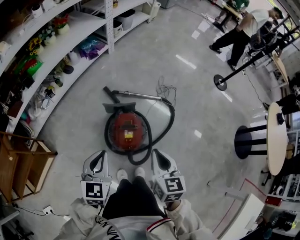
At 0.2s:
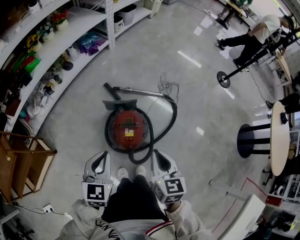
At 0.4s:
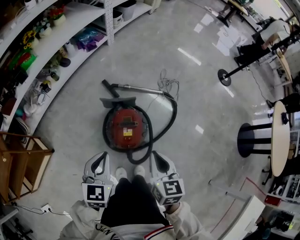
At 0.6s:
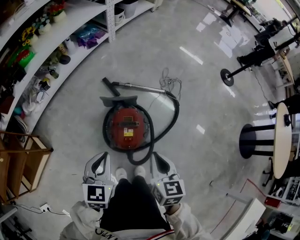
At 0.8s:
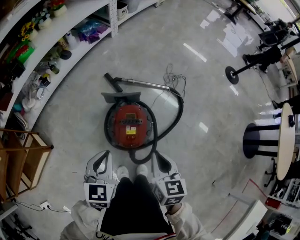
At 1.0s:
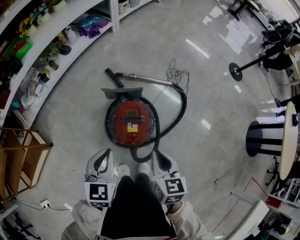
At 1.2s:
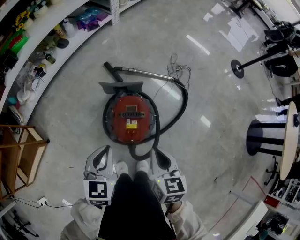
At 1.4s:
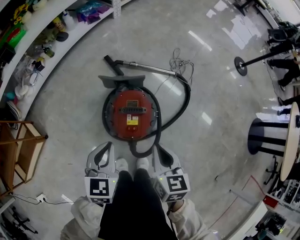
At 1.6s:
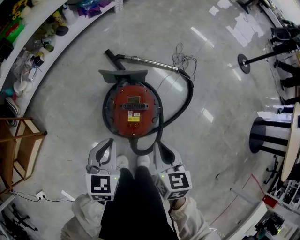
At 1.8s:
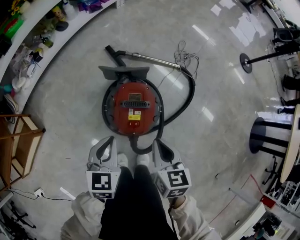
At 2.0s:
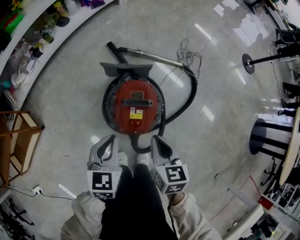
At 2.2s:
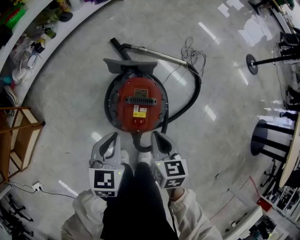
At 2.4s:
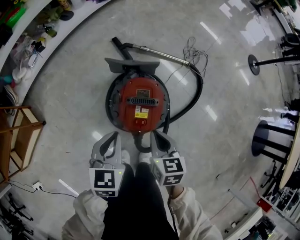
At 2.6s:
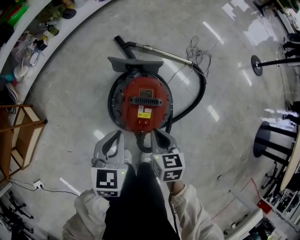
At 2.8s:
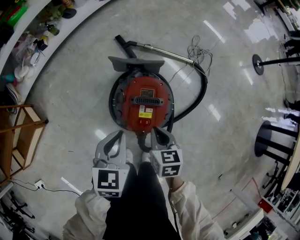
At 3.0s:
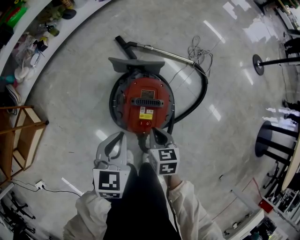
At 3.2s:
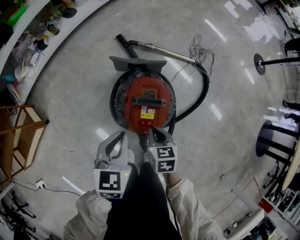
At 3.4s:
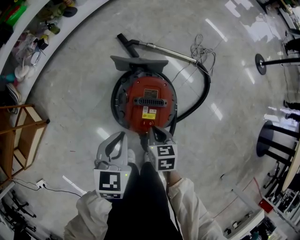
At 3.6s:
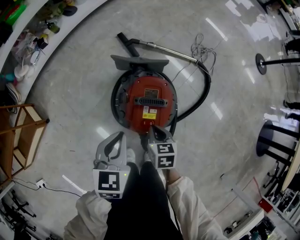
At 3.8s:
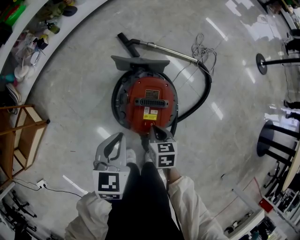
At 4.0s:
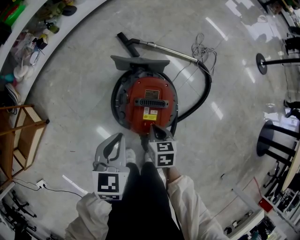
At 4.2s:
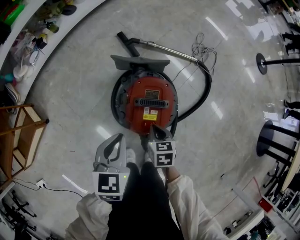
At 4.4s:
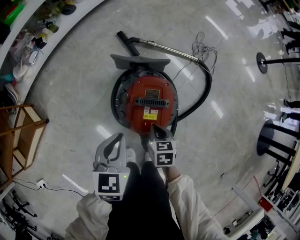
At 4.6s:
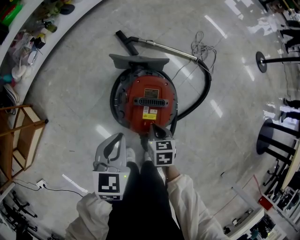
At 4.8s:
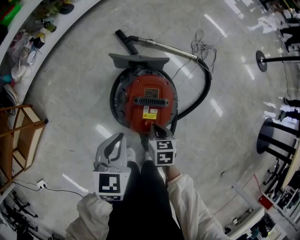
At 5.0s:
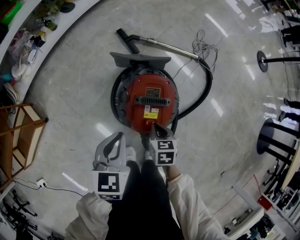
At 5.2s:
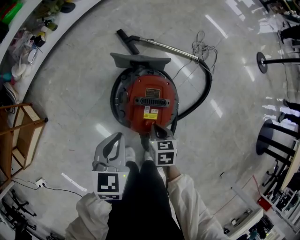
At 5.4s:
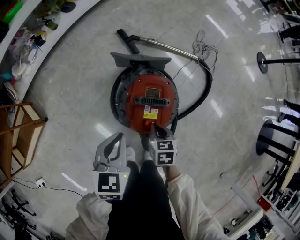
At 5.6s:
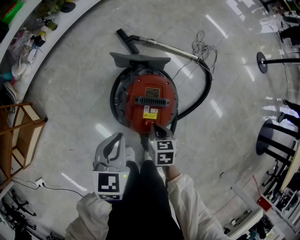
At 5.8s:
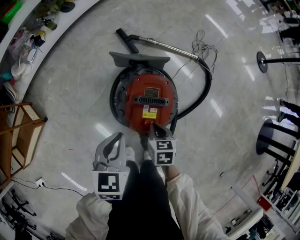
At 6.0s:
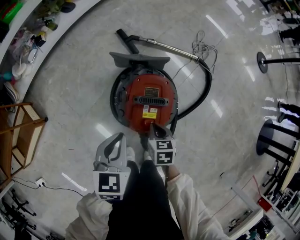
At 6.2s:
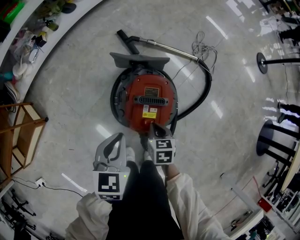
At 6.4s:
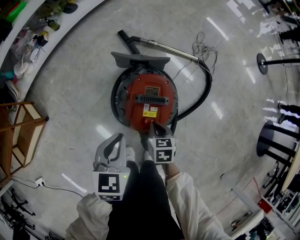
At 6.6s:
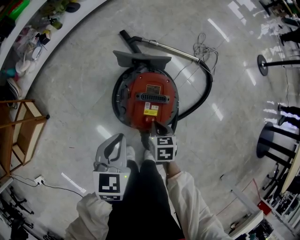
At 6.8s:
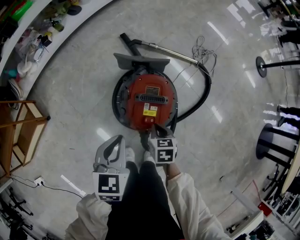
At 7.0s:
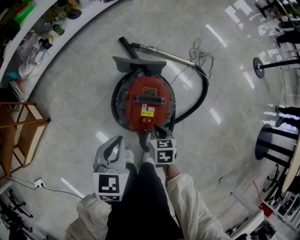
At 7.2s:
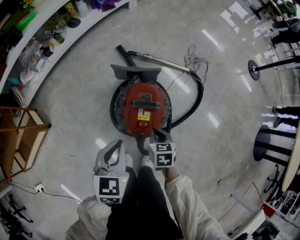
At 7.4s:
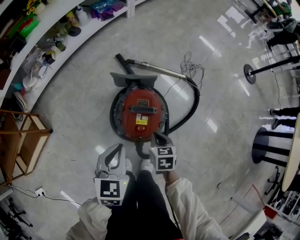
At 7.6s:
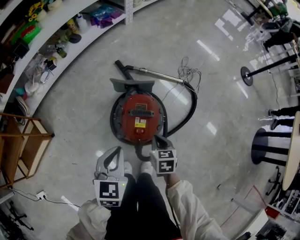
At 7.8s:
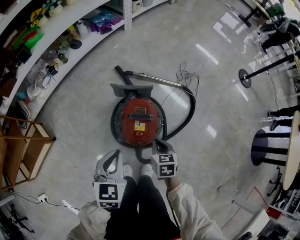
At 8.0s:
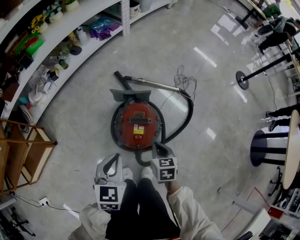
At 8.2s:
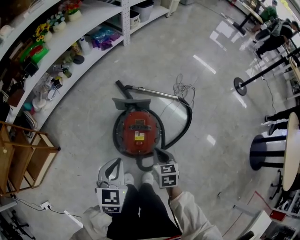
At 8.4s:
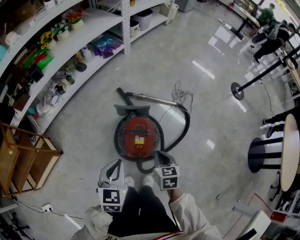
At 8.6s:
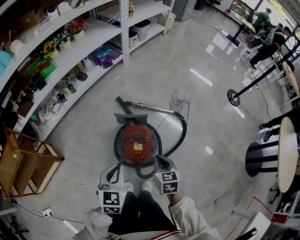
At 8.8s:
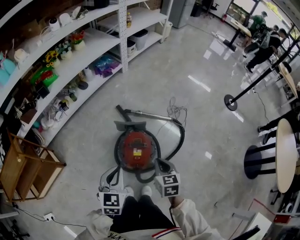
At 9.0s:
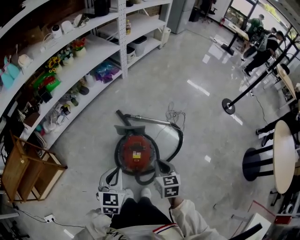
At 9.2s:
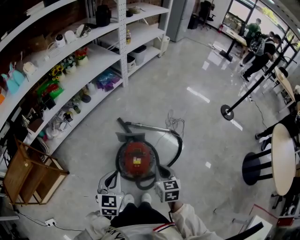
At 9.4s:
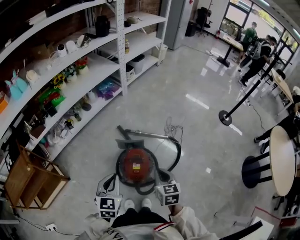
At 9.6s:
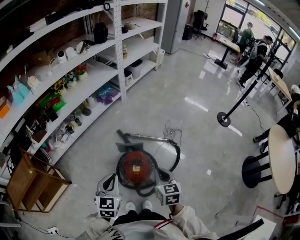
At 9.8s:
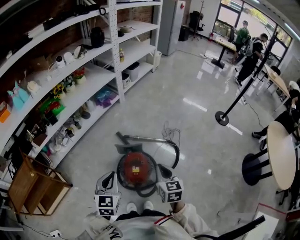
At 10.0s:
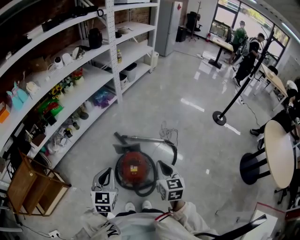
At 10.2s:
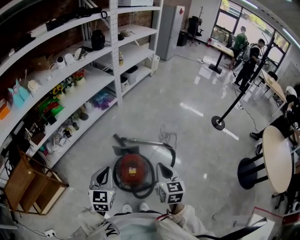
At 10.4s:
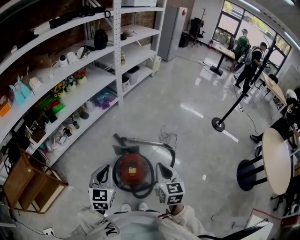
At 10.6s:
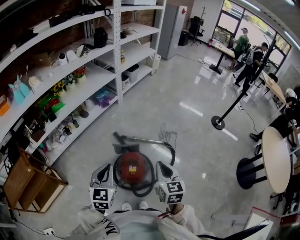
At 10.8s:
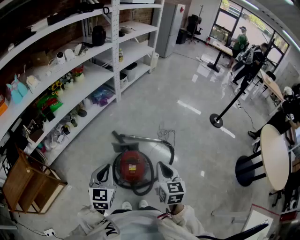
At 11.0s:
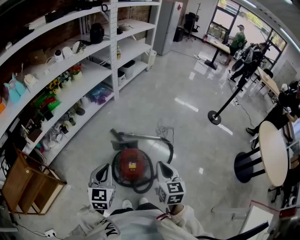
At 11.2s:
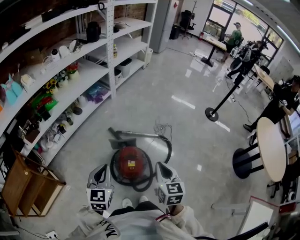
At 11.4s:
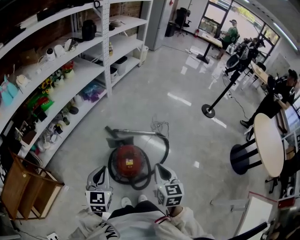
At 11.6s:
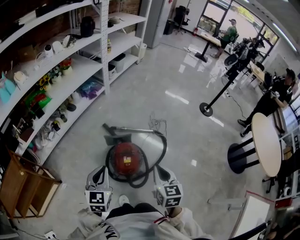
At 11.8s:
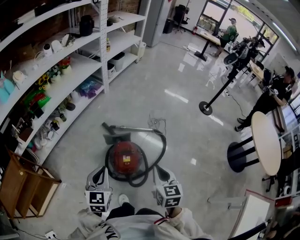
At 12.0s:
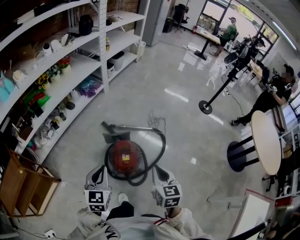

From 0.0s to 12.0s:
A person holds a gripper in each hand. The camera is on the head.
From 0.0s to 1.6s: Both grippers move downward, about 20 cm.
From 1.6s to 3.0s: The right gripper moves downward, roughly 15 cm.
From 3.0s to 4.4s: The right gripper heads downward, covering approximately 5 cm.
From 4.4s to 6.0s: Neither gripper changes place.
From 6.0s to 7.6s: The two grippers go some 10 cm upward.
From 7.6s to 9.0s: The right gripper goes roughly 25 cm upward; the left gripper is displaced upward by approximately 15 cm.
From 9.0s to 10.4s: The left gripper travels upward by roughly 10 cm. Meanwhile the right gripper travels upward by roughly 15 cm.
From 10.4s to 12.0s: The right gripper travels backward by some 10 cm; the left gripper shifts by about 5 cm.

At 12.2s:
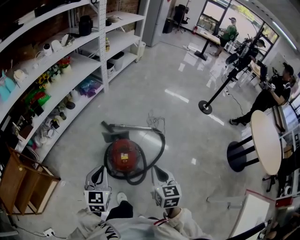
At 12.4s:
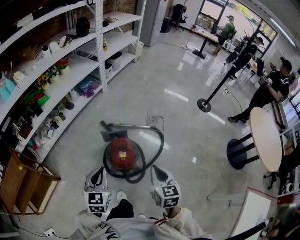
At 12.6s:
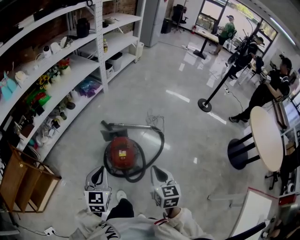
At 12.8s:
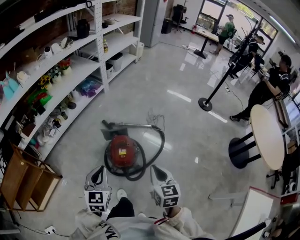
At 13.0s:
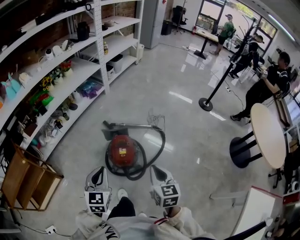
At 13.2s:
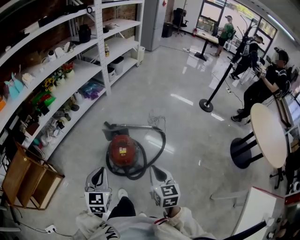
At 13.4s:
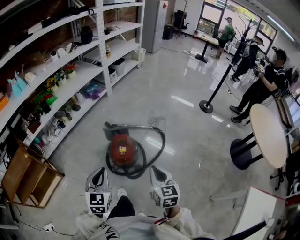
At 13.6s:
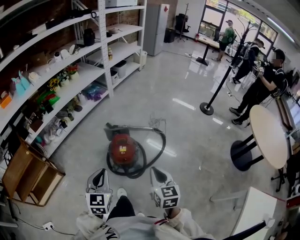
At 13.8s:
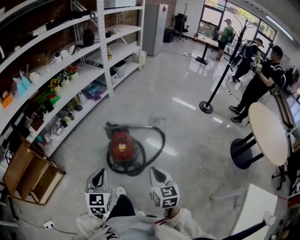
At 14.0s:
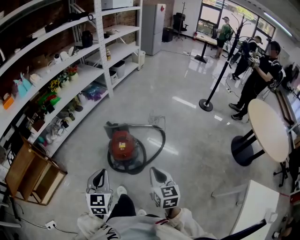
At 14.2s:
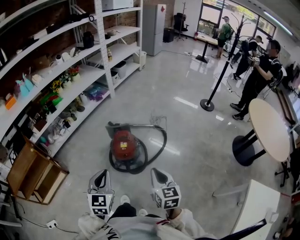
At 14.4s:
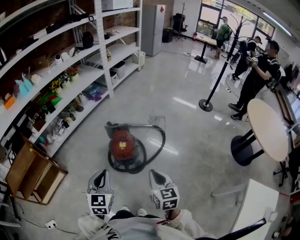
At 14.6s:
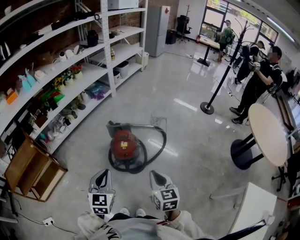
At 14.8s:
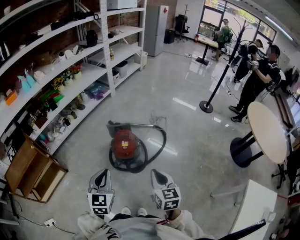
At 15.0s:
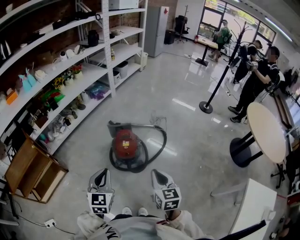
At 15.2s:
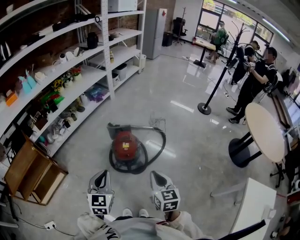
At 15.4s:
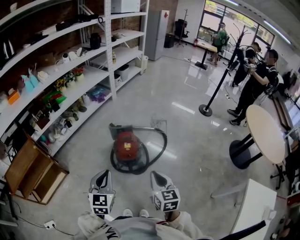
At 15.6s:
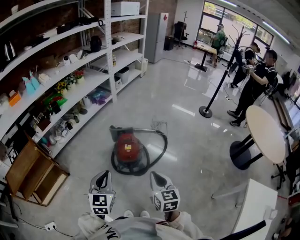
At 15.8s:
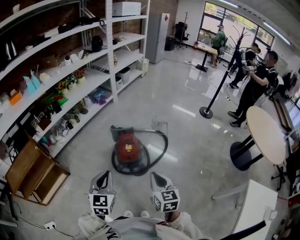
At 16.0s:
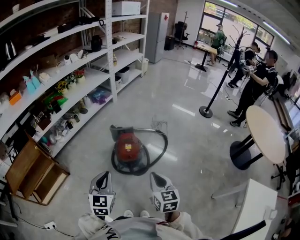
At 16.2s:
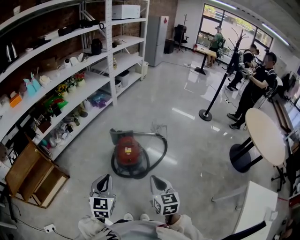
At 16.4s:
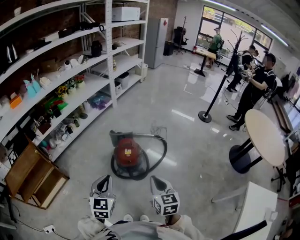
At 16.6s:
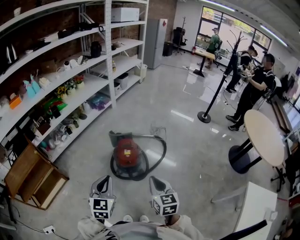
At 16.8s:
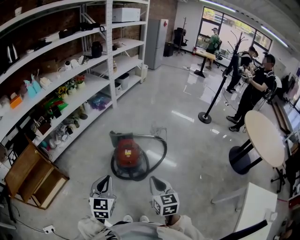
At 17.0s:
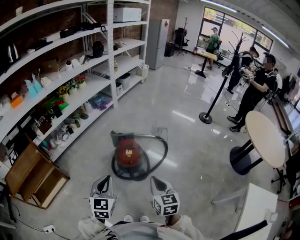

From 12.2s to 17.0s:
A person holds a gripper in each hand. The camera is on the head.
From 12.2s to 13.8s: The grippers both shift backward by some 15 cm.
From 13.8s to 15.4s: The left gripper ends up roughly 5 cm from where it was. Meanwhile the right gripper travels backward by about 5 cm.
From 15.4s to 17.0s: The two grippers keep their place.

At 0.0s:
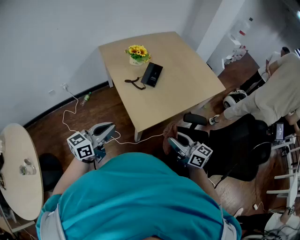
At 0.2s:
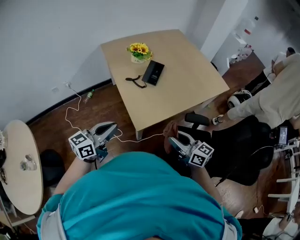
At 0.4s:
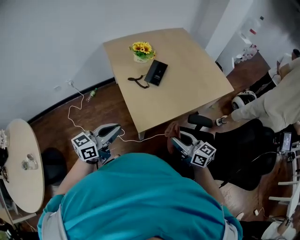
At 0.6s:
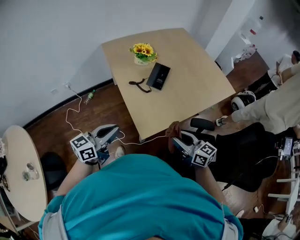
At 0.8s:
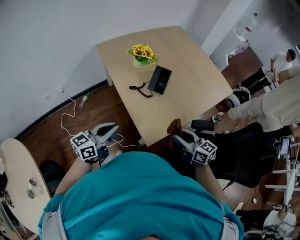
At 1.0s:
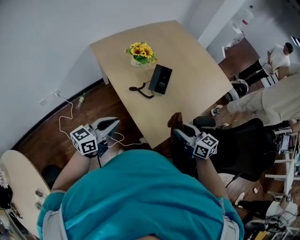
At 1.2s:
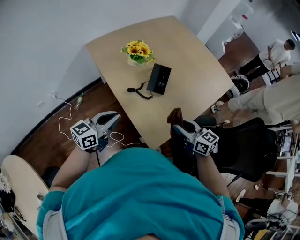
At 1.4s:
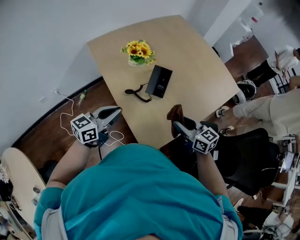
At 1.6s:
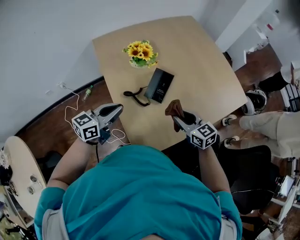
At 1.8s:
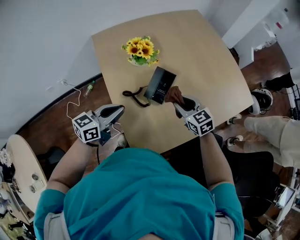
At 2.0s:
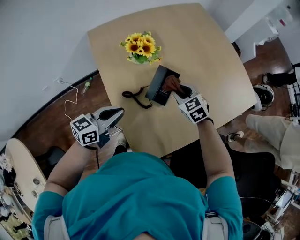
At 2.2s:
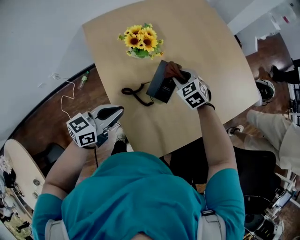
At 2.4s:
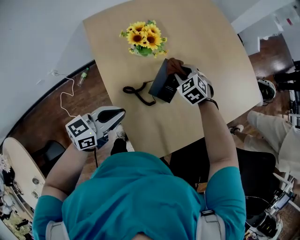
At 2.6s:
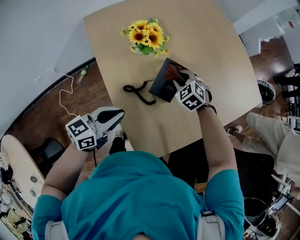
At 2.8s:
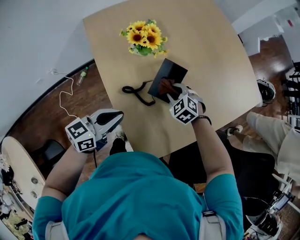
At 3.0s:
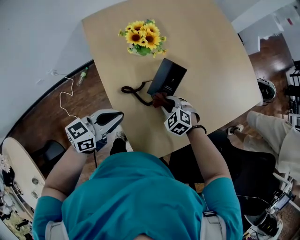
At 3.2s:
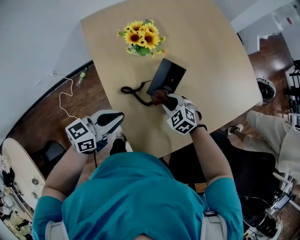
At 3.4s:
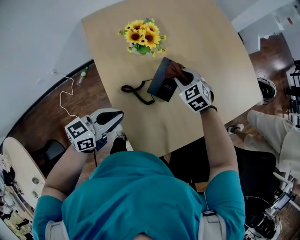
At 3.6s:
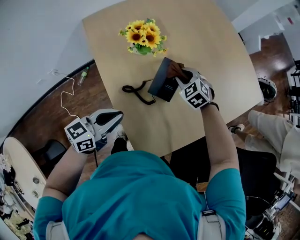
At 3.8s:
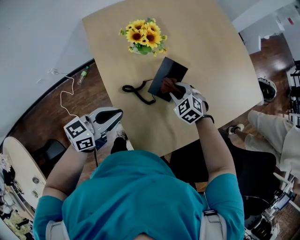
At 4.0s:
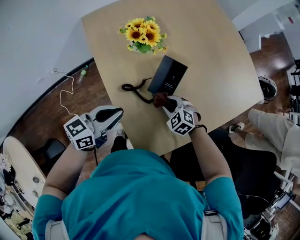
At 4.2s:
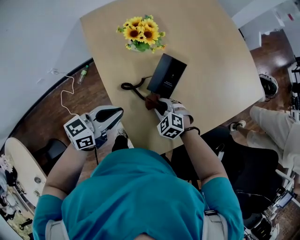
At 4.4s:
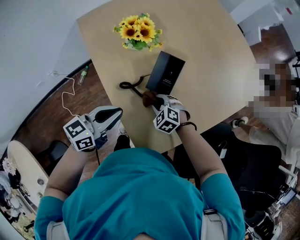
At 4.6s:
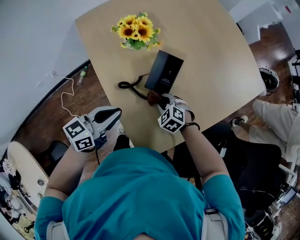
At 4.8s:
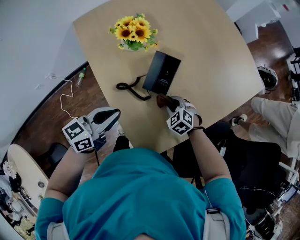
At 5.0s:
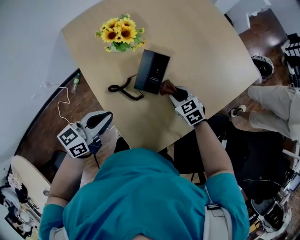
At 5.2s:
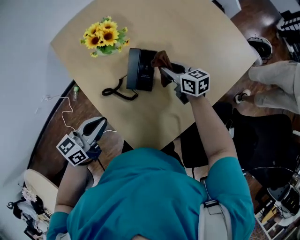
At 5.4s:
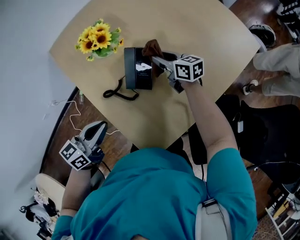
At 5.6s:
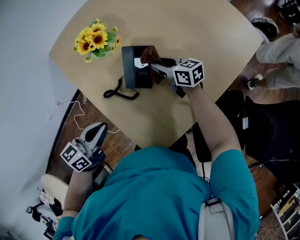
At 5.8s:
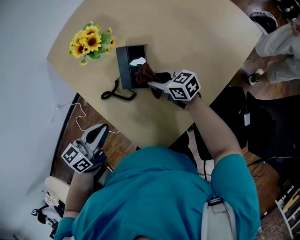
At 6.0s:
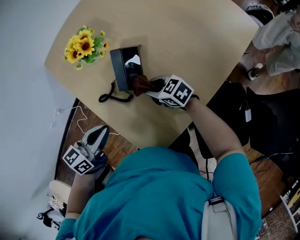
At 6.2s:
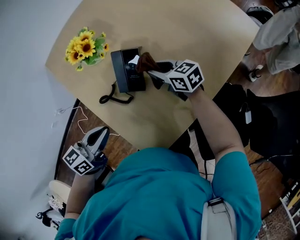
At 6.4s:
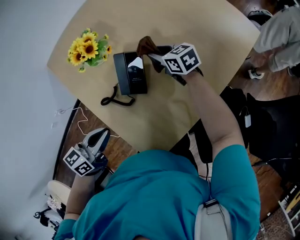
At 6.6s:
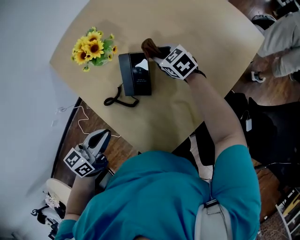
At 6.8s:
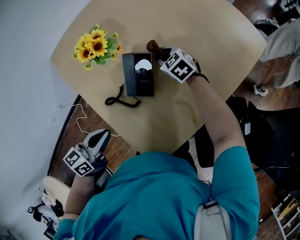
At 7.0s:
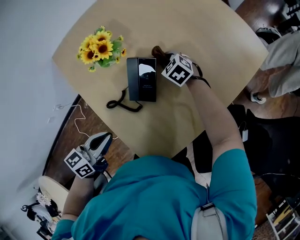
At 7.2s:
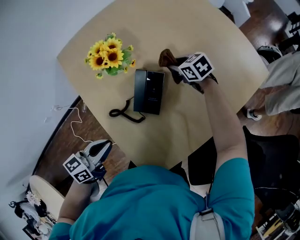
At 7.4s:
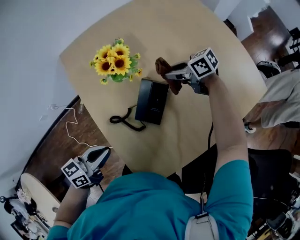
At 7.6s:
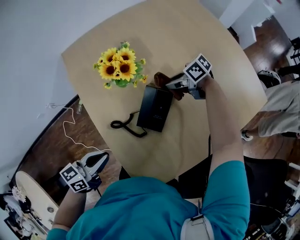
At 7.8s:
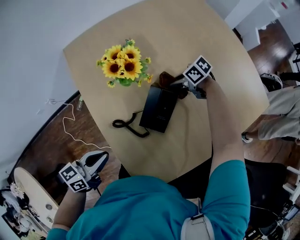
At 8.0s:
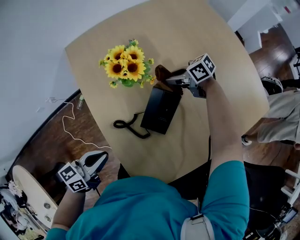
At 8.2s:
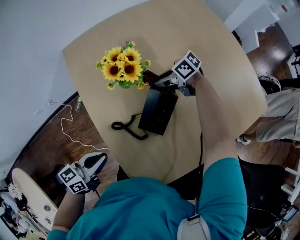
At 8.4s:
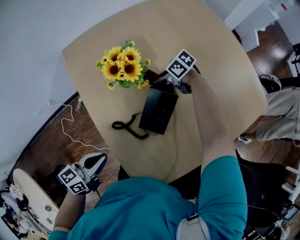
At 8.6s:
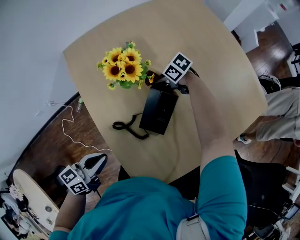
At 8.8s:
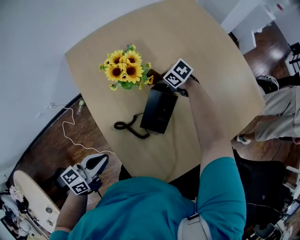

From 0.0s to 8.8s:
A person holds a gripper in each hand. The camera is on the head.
From 0.0s to 1.4s: The two grippers go approximately 30 cm forward.
From 1.4s to 3.0s: The right gripper shifts some 25 cm downward and forward, and tips its fingers downward by some 40 degrees; the left gripper shifts approximately 10 cm downward and forward.
From 3.0s to 4.4s: The right gripper goes forward and returns, approximately 15 cm each way.
From 4.4s to 5.8s: The right gripper travels to the right and forward by some 10 cm, and rotates around the line of its fingers by about 50 degrees, clockwise from behind.
From 5.8s to 7.4s: The right gripper shifts by roughly 20 cm, and swivels roughly 30 degrees.
From 7.4s to 8.8s: The right gripper swings up and down, some 10 cm each way, with 2 reversals, and swivels some 30 degrees.
